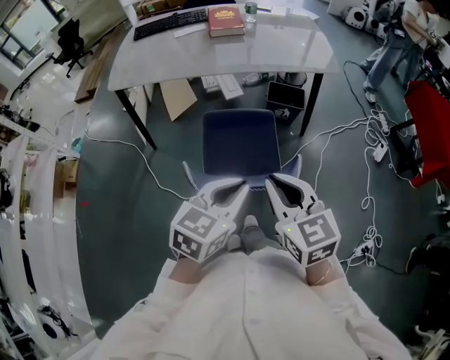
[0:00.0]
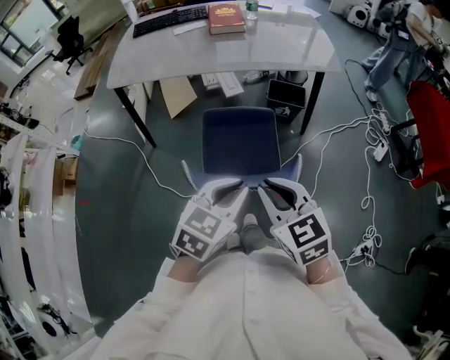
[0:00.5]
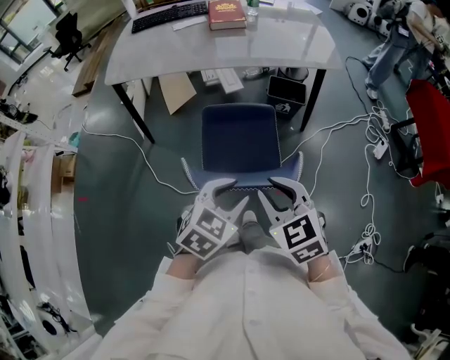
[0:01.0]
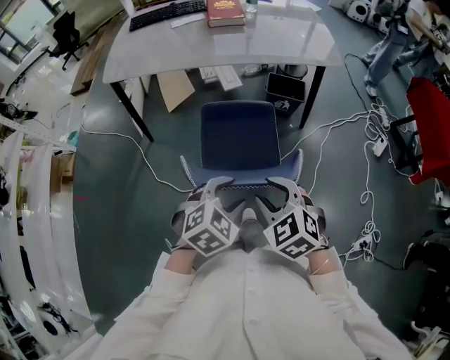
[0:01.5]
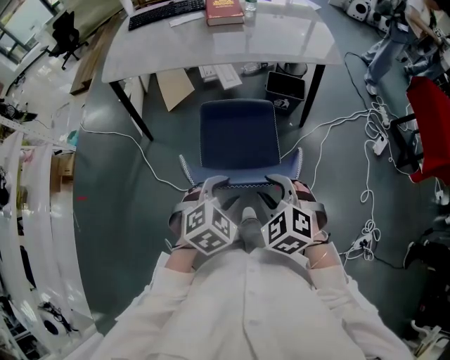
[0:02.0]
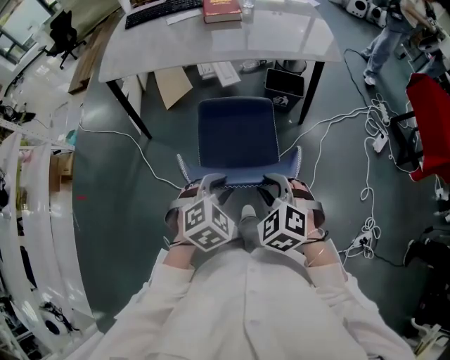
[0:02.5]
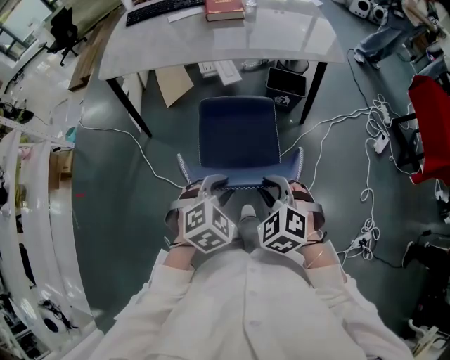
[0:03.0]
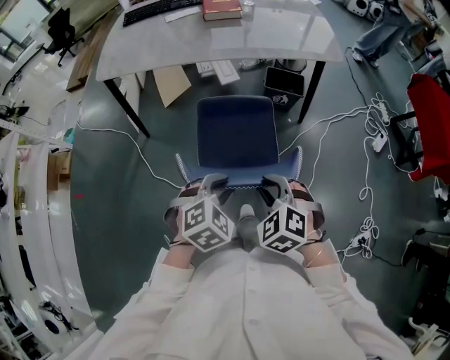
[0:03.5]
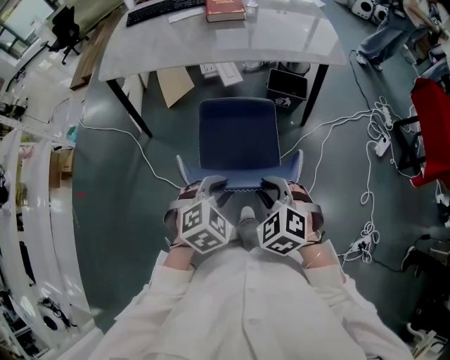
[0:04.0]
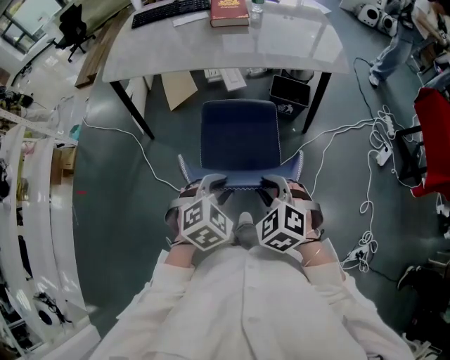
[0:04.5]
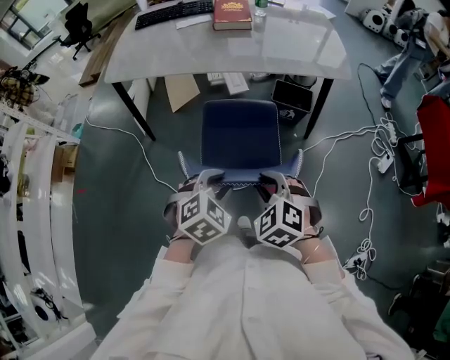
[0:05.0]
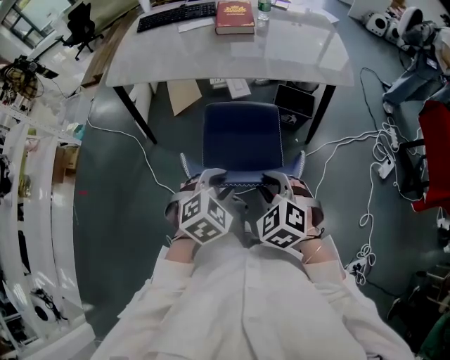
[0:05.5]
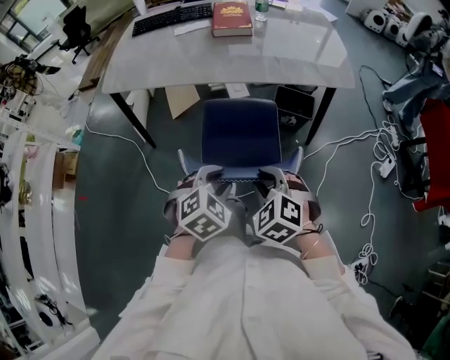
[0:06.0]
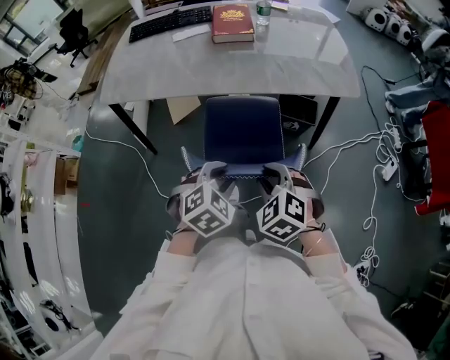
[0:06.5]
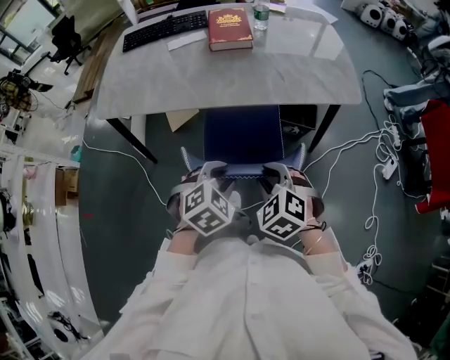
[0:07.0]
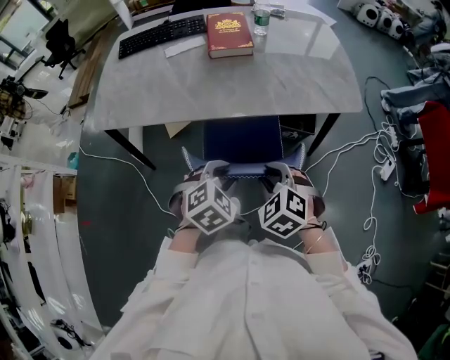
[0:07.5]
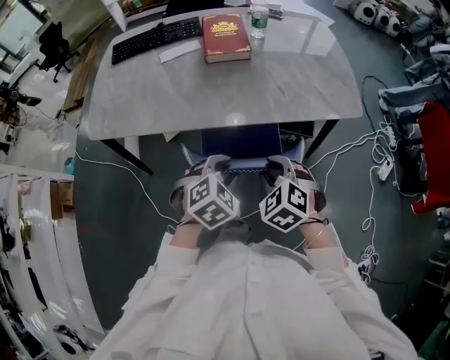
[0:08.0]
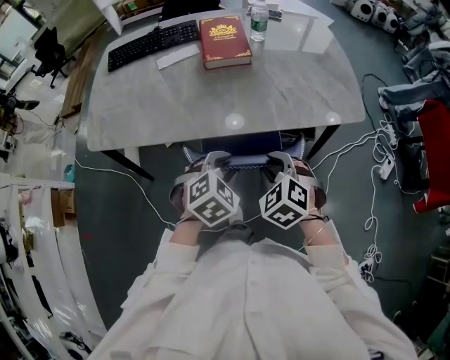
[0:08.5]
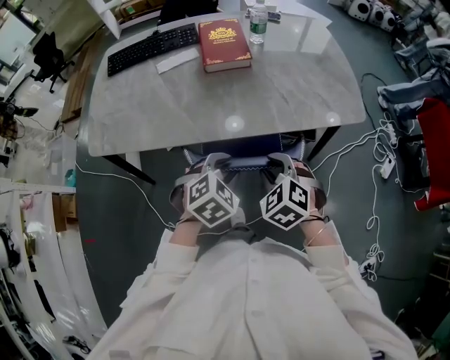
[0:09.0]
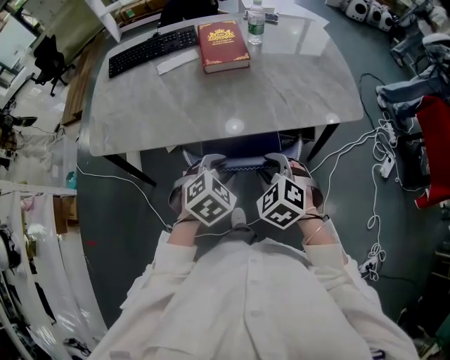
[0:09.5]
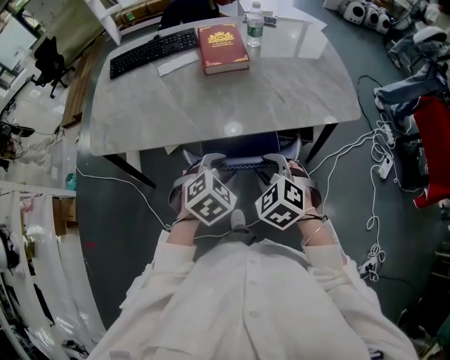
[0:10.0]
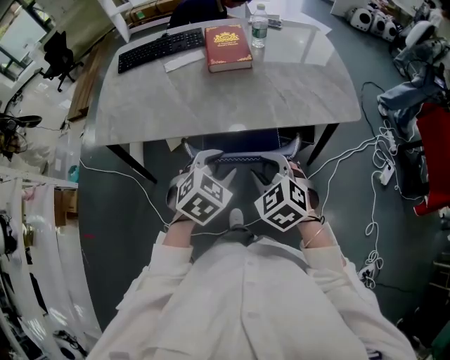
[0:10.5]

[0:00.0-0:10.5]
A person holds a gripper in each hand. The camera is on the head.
0:00.0 to 0:02.0: The grippers both shift downward by approximately 10 cm. The left gripper swivels roughly 40 degrees, and opens its fingers; the right gripper rotates about 50 degrees, and opens its fingers.
0:02.0 to 0:04.0: The grippers stay close to where they were, moving slightly.
0:04.0 to 0:06.5: Both grippers travel together forward, about 20 cm.
0:06.5 to 0:08.5: The grippers both shift forward by about 20 cm.
0:08.5 to 0:10.5: The left gripper changes place by roughly 5 cm, while the right gripper shifts by about 5 cm.

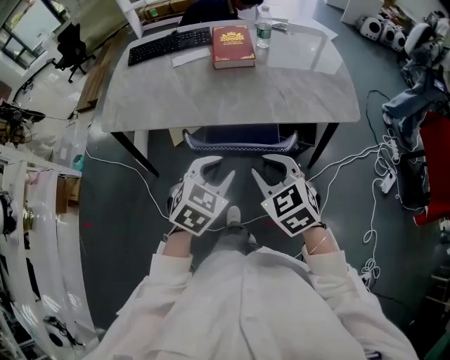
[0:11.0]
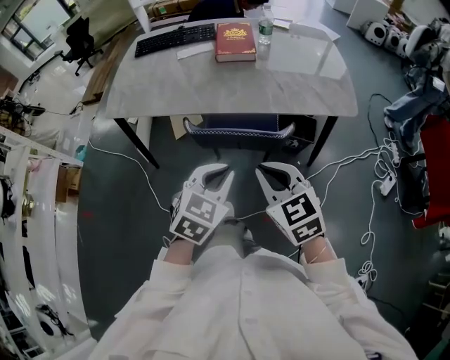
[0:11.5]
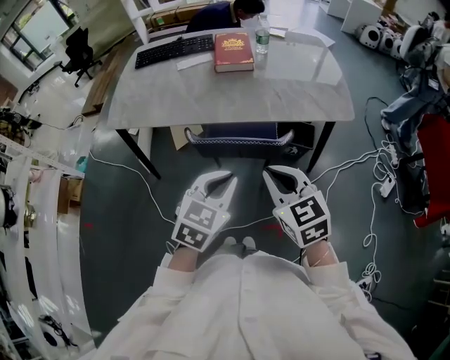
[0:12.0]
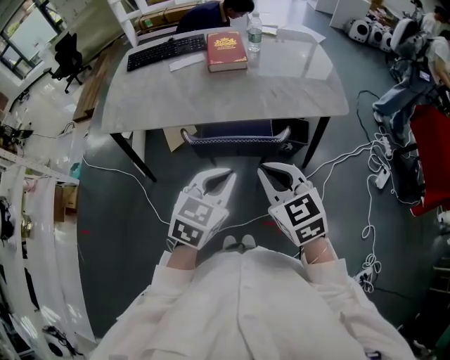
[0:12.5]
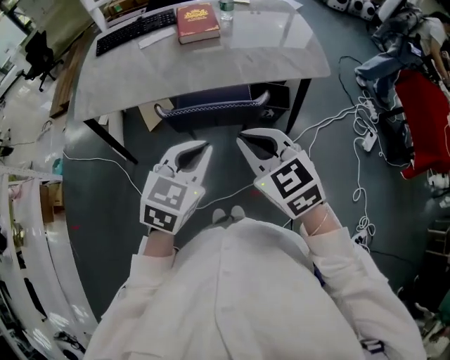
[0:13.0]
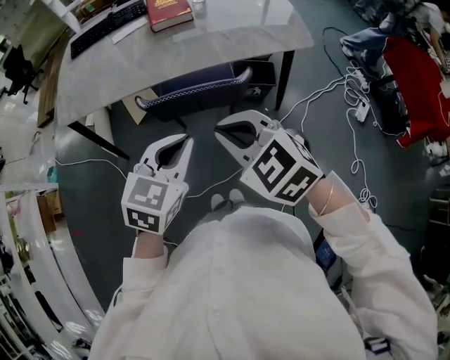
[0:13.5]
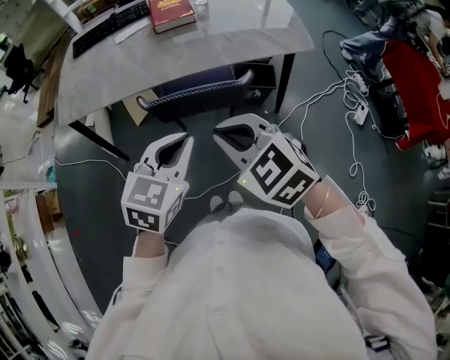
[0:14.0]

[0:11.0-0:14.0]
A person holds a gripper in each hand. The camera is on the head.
0:11.0 to 0:12.5: The two grippers go roughly 5 cm backward. The right gripper closes its fingers. The left gripper closes.
0:12.5 to 0:14.0: There are only small adjustments of the grippers.

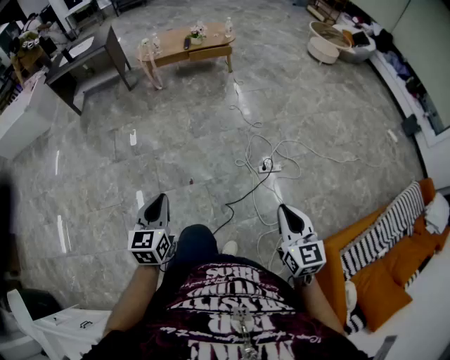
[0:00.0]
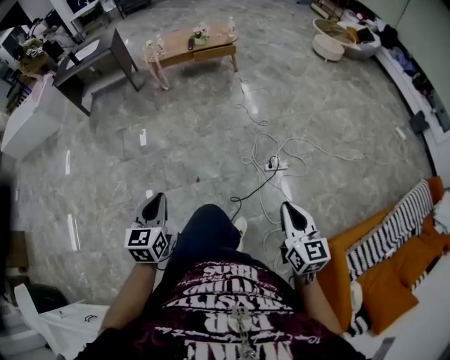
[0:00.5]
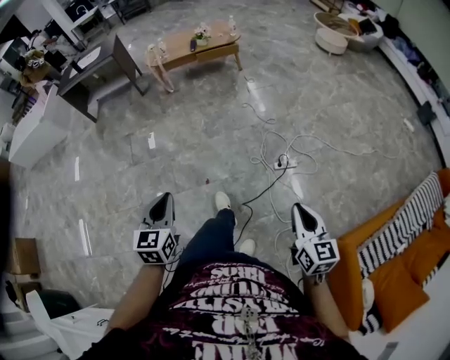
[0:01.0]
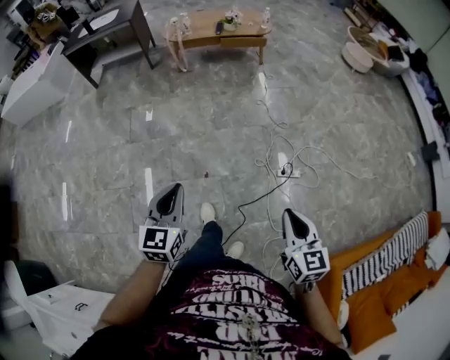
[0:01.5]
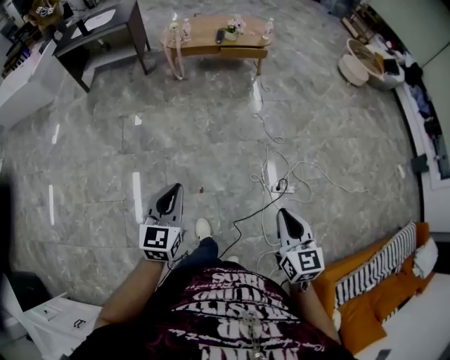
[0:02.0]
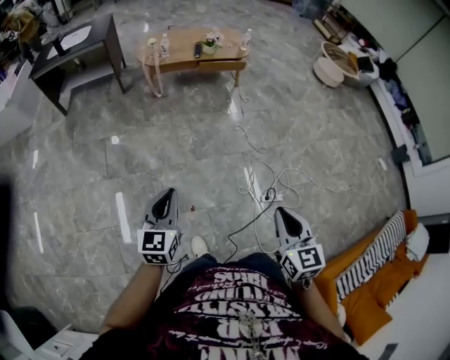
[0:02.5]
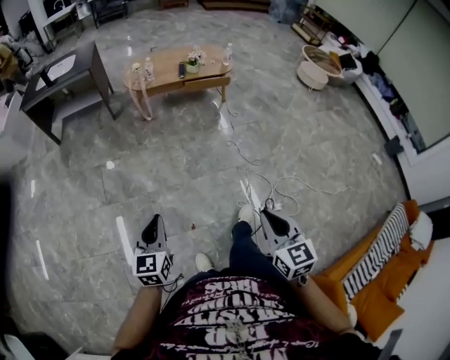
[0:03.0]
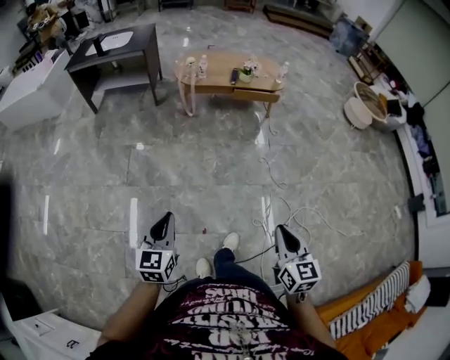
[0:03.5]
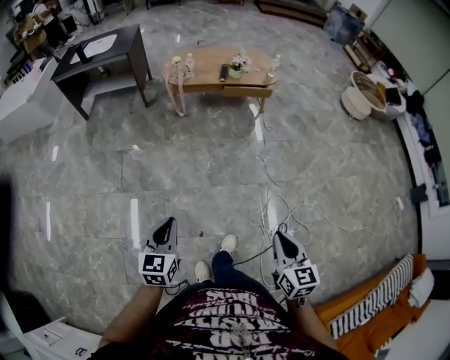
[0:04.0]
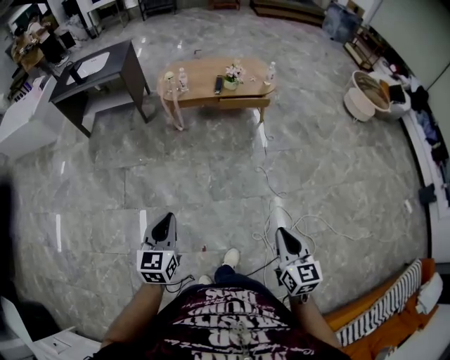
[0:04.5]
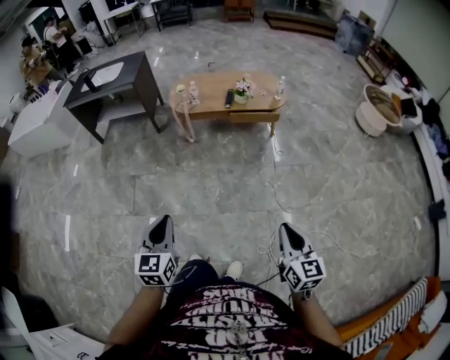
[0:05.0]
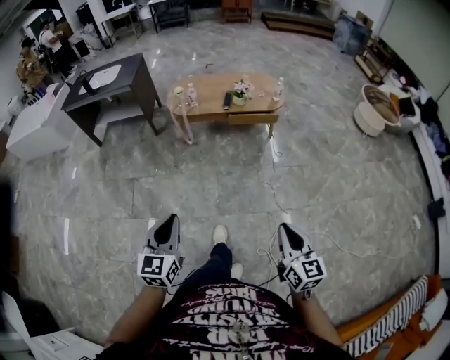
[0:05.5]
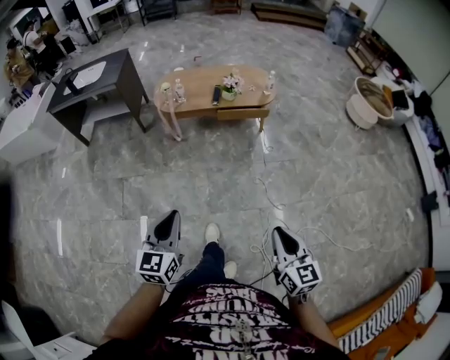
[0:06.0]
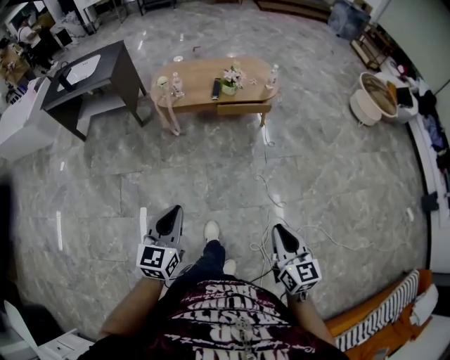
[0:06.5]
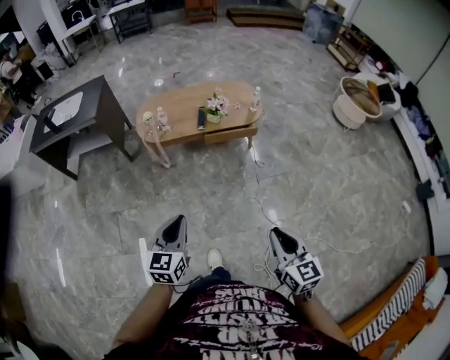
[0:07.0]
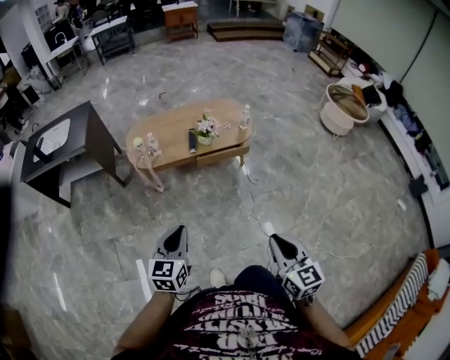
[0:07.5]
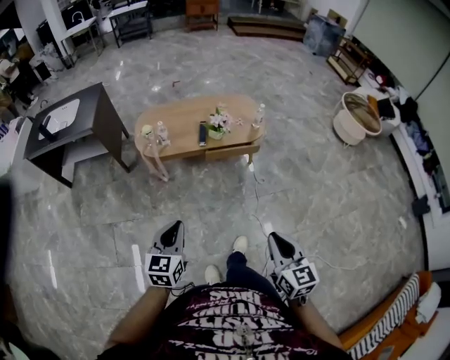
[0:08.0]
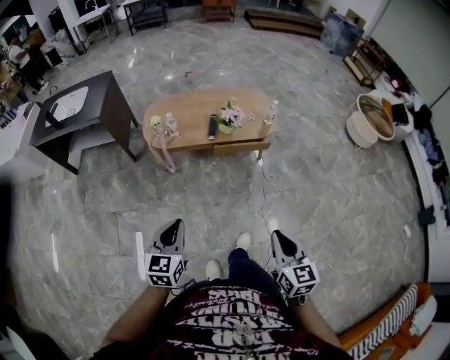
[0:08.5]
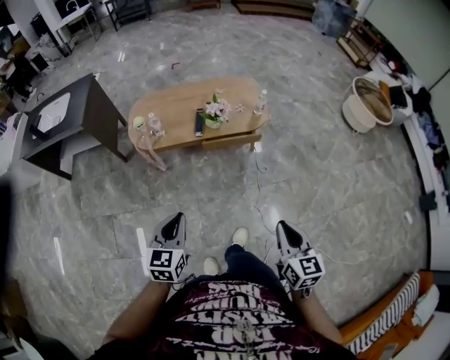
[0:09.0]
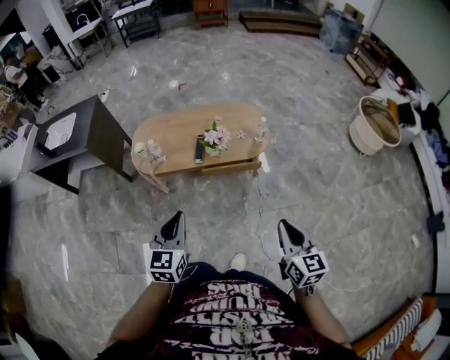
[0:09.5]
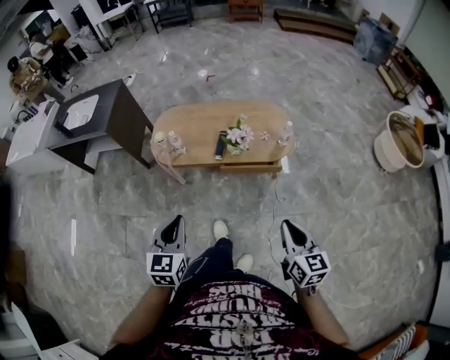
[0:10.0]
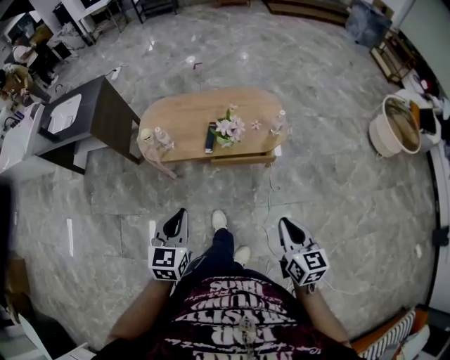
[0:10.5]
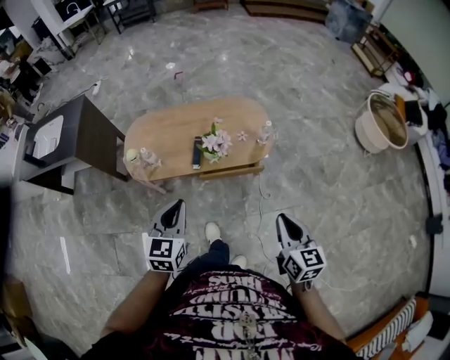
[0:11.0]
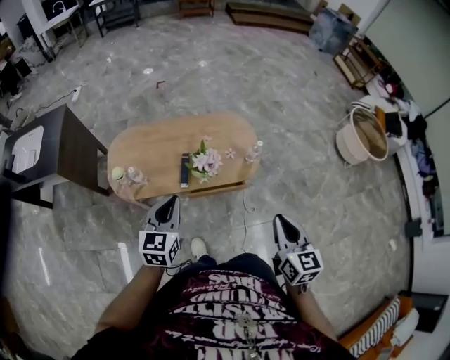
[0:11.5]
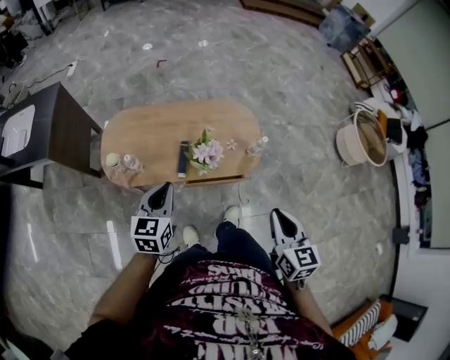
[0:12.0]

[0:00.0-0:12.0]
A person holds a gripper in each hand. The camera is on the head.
0:00.0 to 0:02.0: The two grippers go roughly 20 cm forward and to the left.
0:02.0 to 0:04.0: The grippers both shift forward by approximately 15 cm.
0:04.0 to 0:06.0: Both grippers move forward and to the right, roughly 20 cm.
0:06.0 to 0:08.0: The grippers both shift forward by approximately 25 cm.
0:08.0 to 0:10.0: The left gripper travels forward and to the right by some 20 cm, while the right gripper heads forward and to the right, covering some 25 cm.
0:10.0 to 0:12.0: The two grippers go some 25 cm forward.

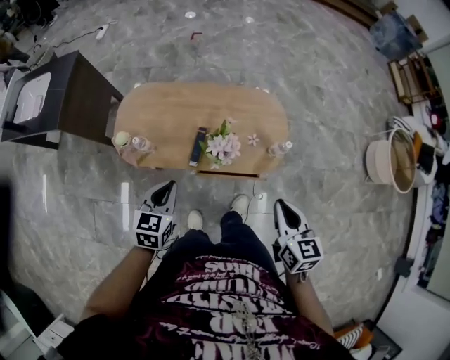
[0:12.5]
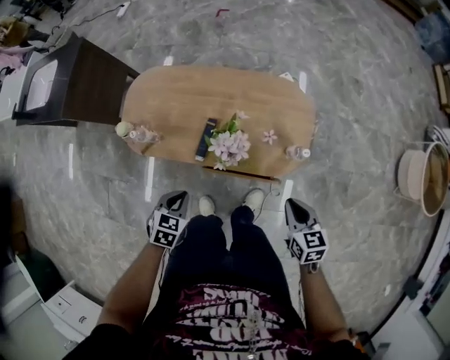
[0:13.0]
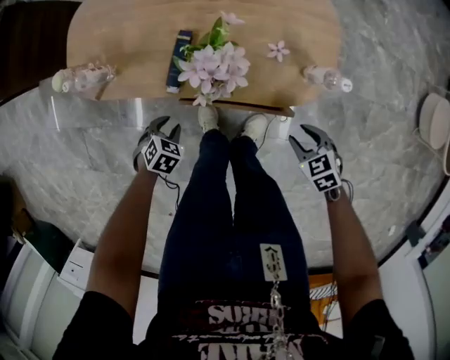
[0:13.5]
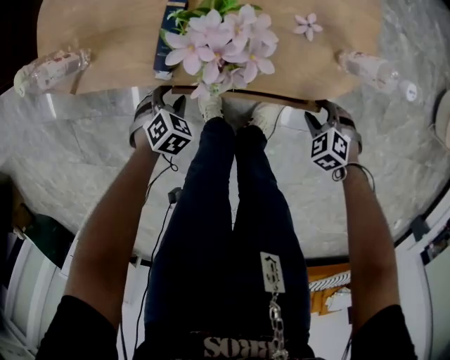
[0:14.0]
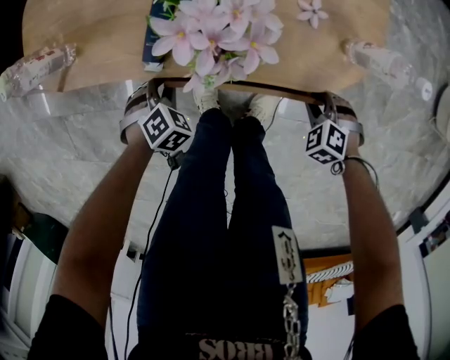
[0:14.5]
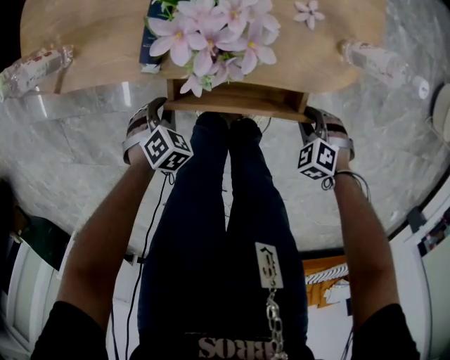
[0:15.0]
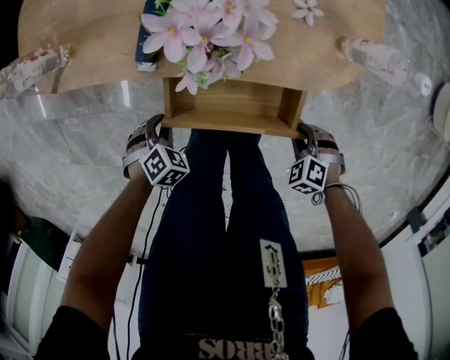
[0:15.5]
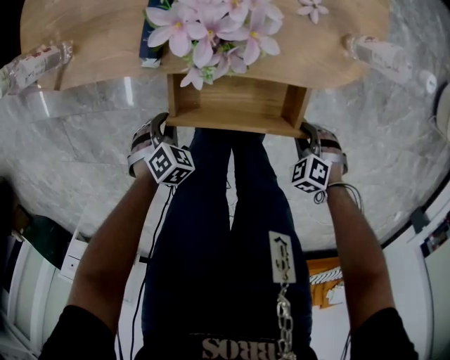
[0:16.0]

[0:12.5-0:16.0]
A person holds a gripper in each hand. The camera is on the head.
0:12.5 to 0:14.5: The two grippers go approximately 50 cm downward. The left gripper tilts its fingers some 40 degrees downward, and opens, then closes once more; the right gripper tilts its fingers about 50 degrees downward, and opens and closes again.
0:14.5 to 0:16.0: The left gripper ends up some 10 cm from where it was. The right gripper shifts by approximately 10 cm.
